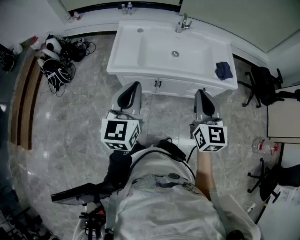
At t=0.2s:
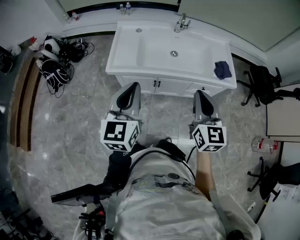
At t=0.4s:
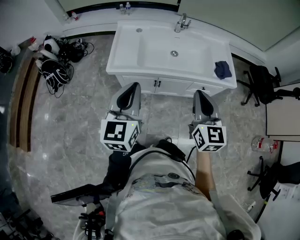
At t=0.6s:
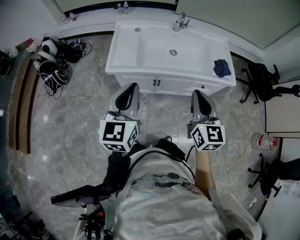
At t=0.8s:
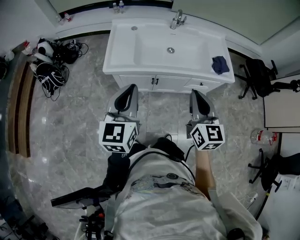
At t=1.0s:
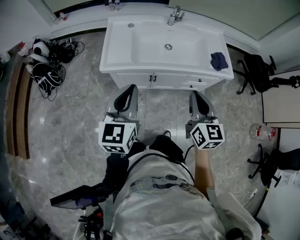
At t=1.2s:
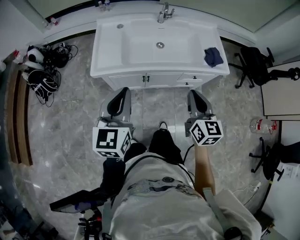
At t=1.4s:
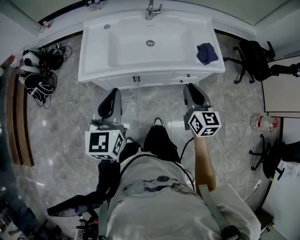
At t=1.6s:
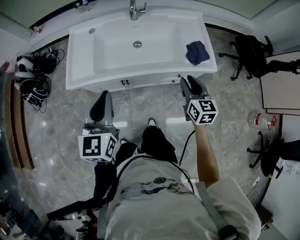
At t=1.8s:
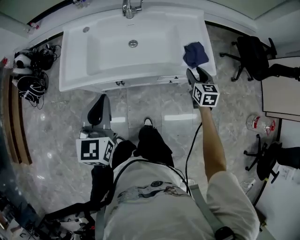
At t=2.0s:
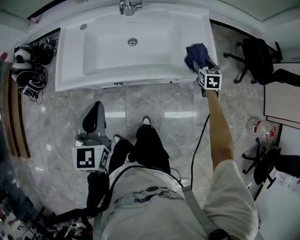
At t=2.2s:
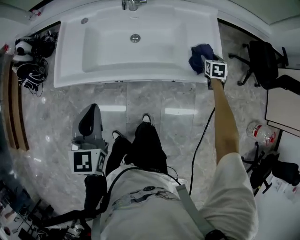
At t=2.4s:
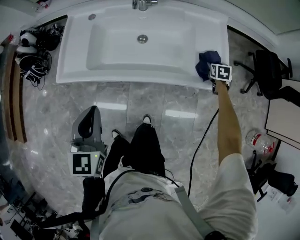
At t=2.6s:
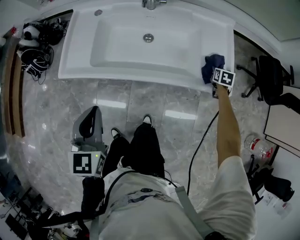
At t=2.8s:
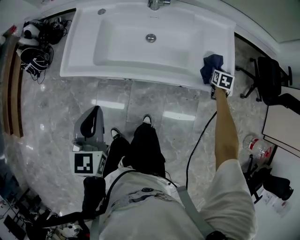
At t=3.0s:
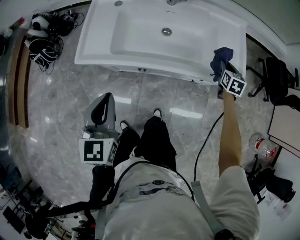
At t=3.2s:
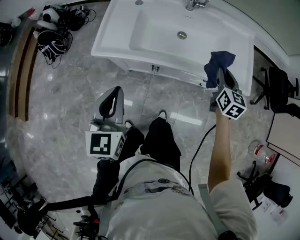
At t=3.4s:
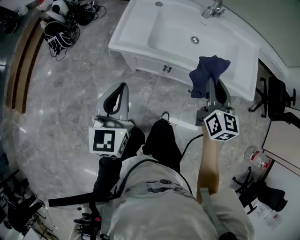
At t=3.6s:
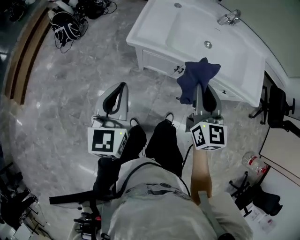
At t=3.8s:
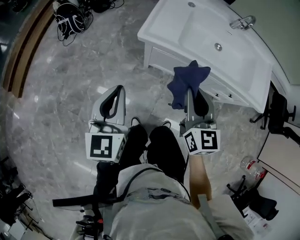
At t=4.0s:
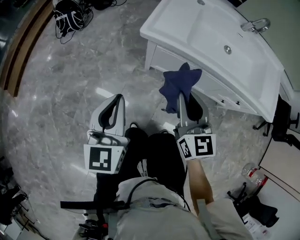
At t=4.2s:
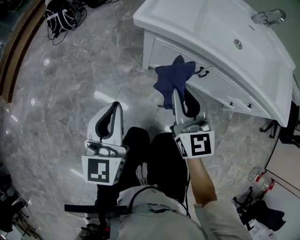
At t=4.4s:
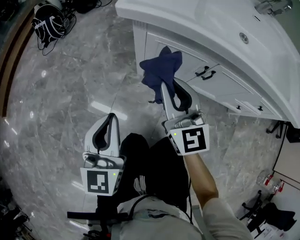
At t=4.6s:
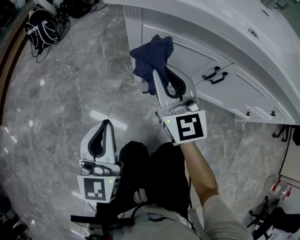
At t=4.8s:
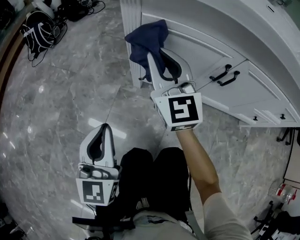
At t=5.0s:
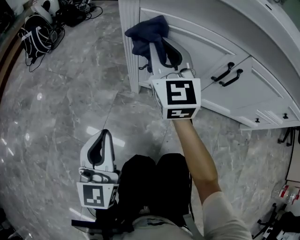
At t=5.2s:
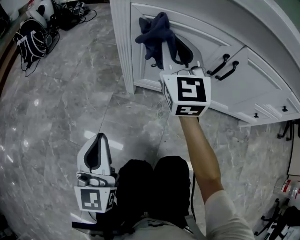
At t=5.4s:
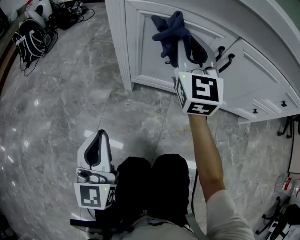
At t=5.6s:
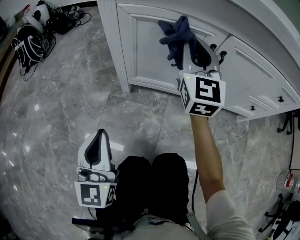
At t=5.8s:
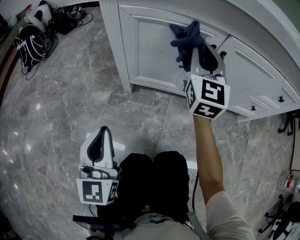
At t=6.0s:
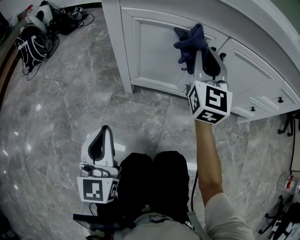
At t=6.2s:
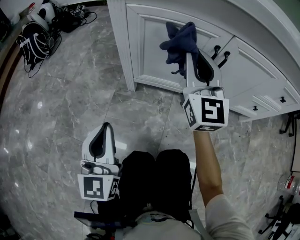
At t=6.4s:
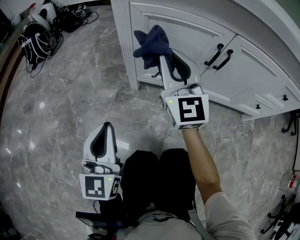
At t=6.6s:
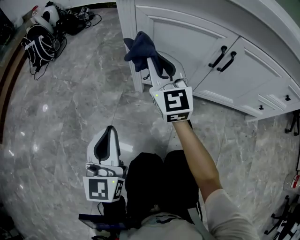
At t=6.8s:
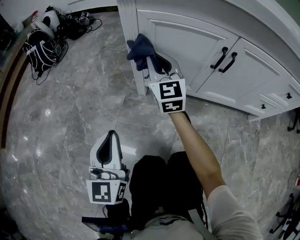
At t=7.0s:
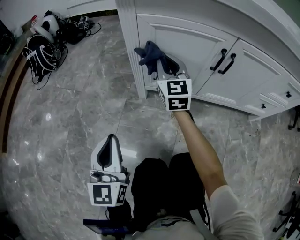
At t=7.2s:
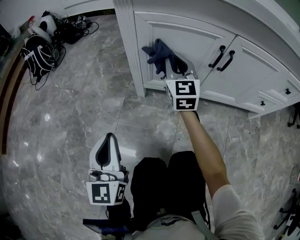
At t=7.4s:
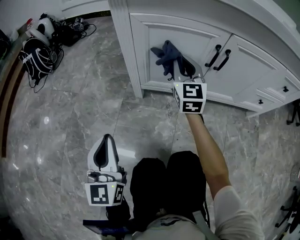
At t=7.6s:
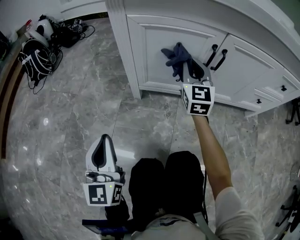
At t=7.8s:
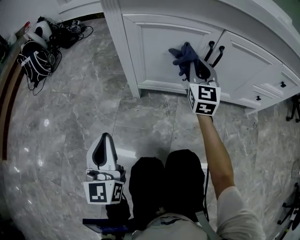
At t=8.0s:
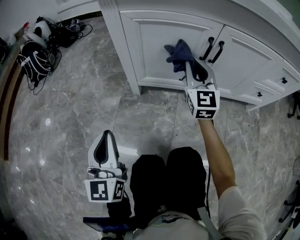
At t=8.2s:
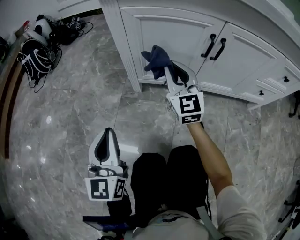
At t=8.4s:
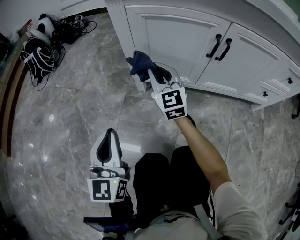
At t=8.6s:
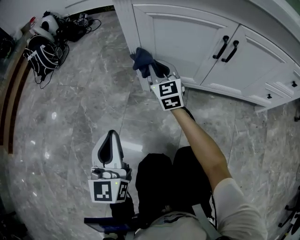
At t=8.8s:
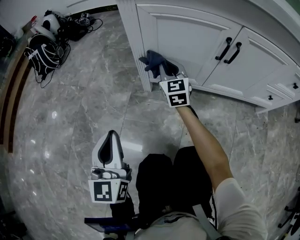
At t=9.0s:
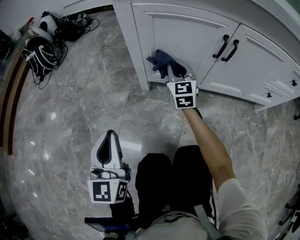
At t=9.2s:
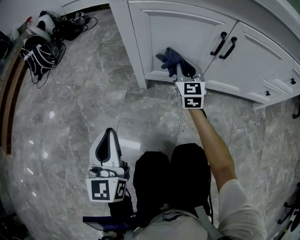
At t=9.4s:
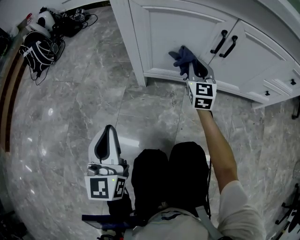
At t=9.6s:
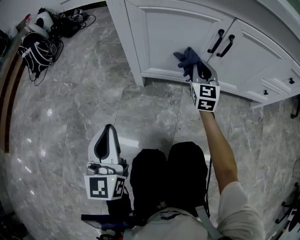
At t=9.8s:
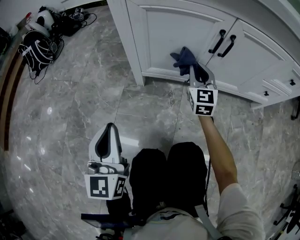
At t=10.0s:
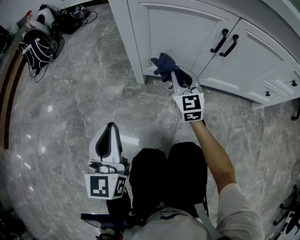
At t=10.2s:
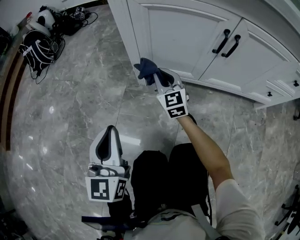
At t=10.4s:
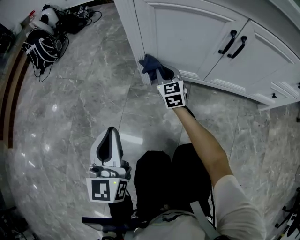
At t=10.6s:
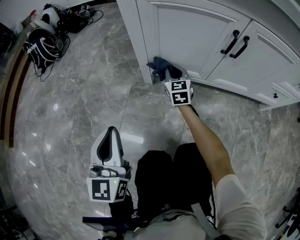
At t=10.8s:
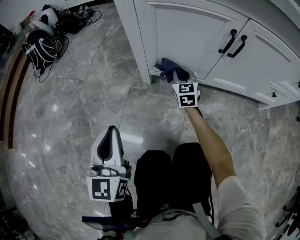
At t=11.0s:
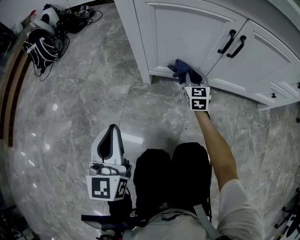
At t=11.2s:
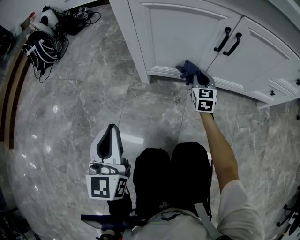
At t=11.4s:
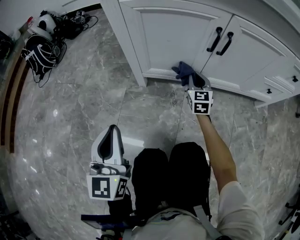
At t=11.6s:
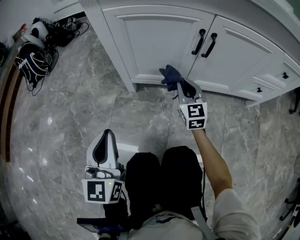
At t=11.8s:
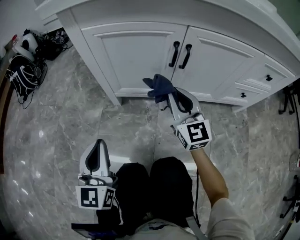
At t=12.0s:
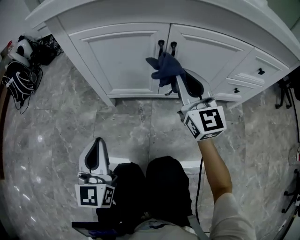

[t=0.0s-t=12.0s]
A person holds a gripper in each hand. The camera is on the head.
t=0.0s to t=1.6s: The left gripper shifts roughly 15 cm to the right, forward and downward; the right gripper moves to the right, downward and forward, approximately 30 cm, and opens up.
t=1.6s to t=3.0s: The right gripper is displaced forward, downward and to the right by some 25 cm, turns by some 20 degrees, and opens, then closes once more. The left gripper heads downward, covering approximately 5 cm.
t=3.0s to t=4.4s: The right gripper moves approximately 60 cm, and tips its fingers upward by about 40 degrees. The left gripper heads downward, covering about 30 cm.
t=4.4s to t=6.0s: The right gripper goes about 25 cm to the right, downward and forward, and swivels approximately 30 degrees. Meanwhile the left gripper goes roughly 20 cm downward.
t=6.0s to t=7.6s: The right gripper is displaced downward by roughly 10 cm, and goes to the left and returns, about 20 cm each way. The left gripper shifts about 5 cm to the left.
t=7.6s to t=9.0s: The right gripper travels downward and to the left by roughly 15 cm.
t=9.0s to t=10.4s: The right gripper travels downward by about 10 cm, and reaches approximately 15 cm to the right, then returns.
t=10.4s to t=12.0s: The right gripper travels to the right, upward and backward by about 35 cm, and rotates roughly 20 degrees, while the left gripper heads to the right, covering some 10 cm.

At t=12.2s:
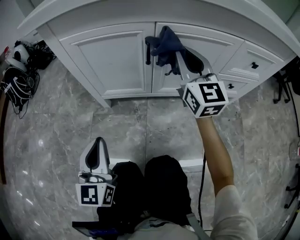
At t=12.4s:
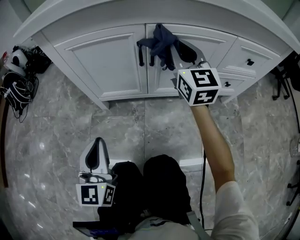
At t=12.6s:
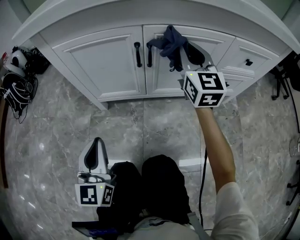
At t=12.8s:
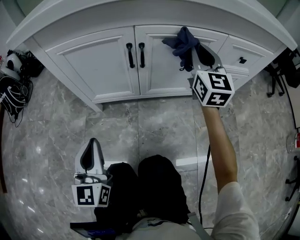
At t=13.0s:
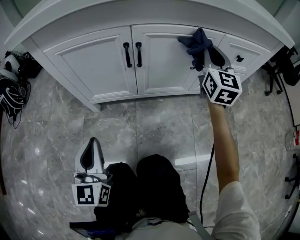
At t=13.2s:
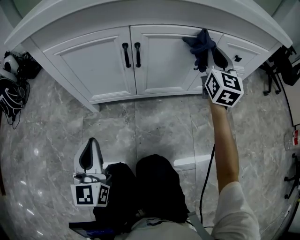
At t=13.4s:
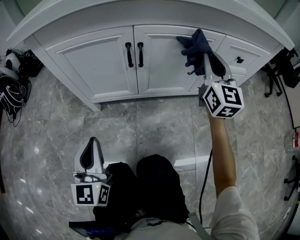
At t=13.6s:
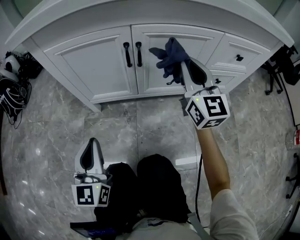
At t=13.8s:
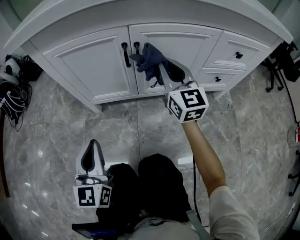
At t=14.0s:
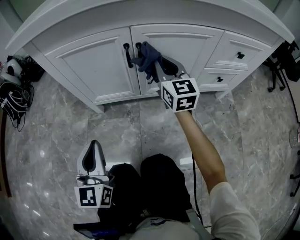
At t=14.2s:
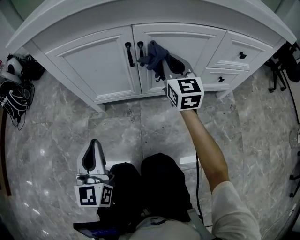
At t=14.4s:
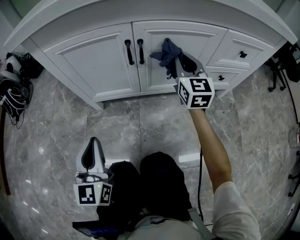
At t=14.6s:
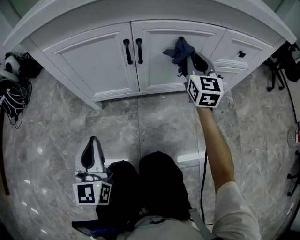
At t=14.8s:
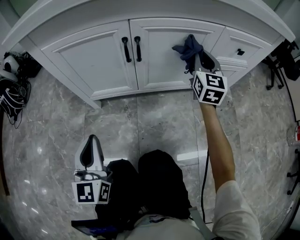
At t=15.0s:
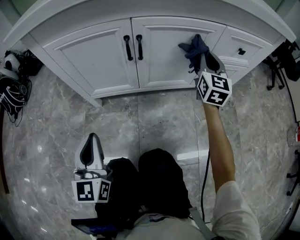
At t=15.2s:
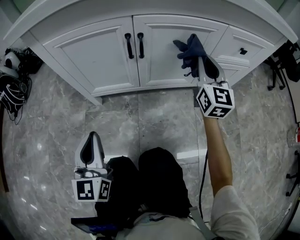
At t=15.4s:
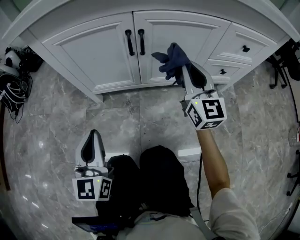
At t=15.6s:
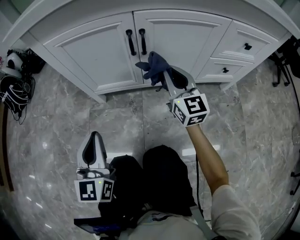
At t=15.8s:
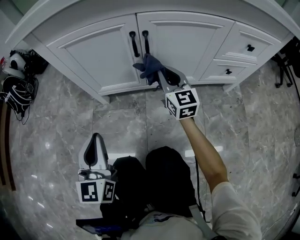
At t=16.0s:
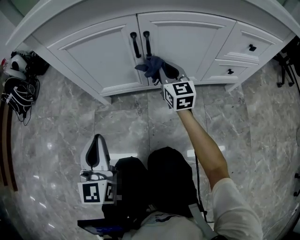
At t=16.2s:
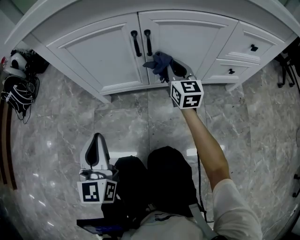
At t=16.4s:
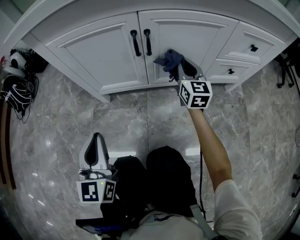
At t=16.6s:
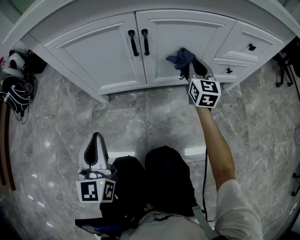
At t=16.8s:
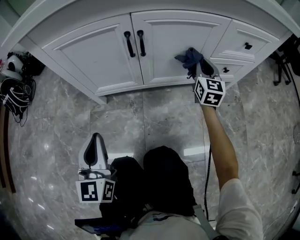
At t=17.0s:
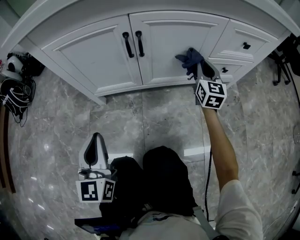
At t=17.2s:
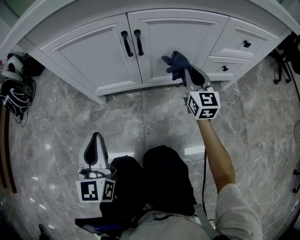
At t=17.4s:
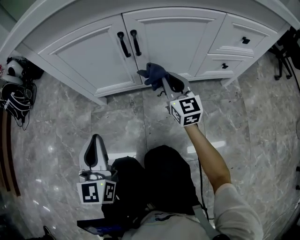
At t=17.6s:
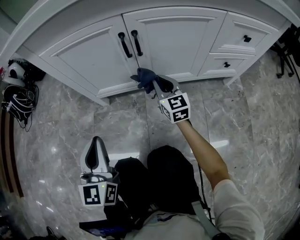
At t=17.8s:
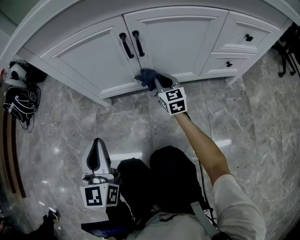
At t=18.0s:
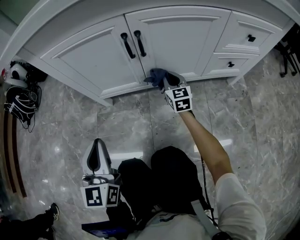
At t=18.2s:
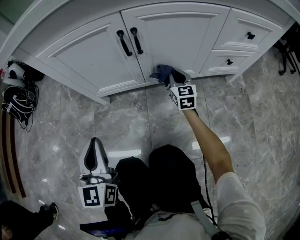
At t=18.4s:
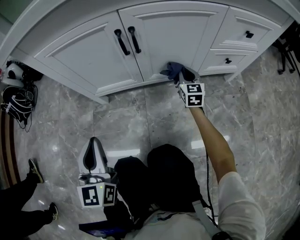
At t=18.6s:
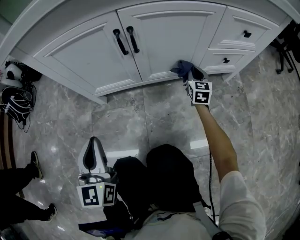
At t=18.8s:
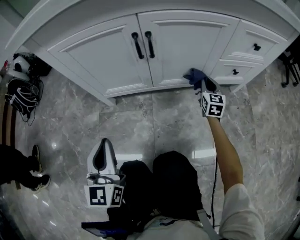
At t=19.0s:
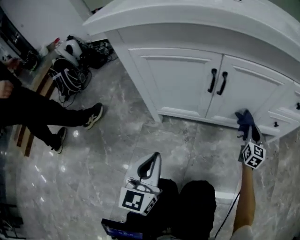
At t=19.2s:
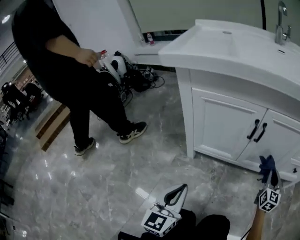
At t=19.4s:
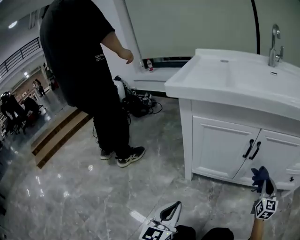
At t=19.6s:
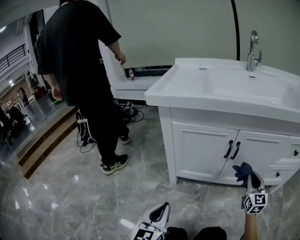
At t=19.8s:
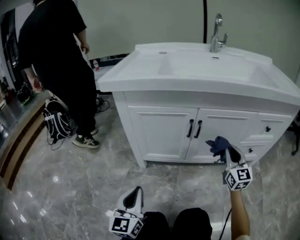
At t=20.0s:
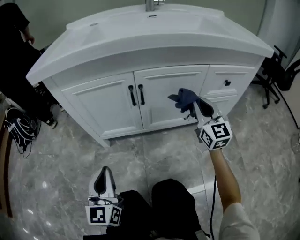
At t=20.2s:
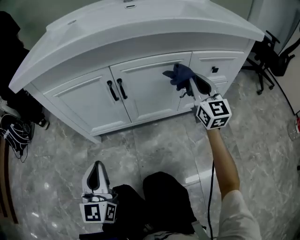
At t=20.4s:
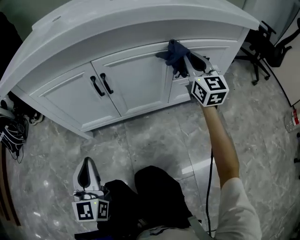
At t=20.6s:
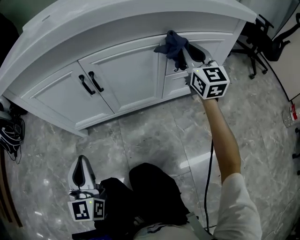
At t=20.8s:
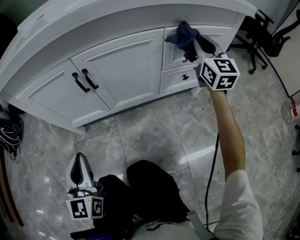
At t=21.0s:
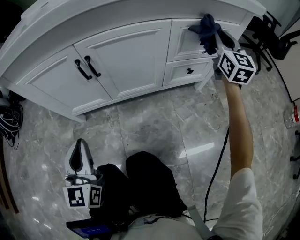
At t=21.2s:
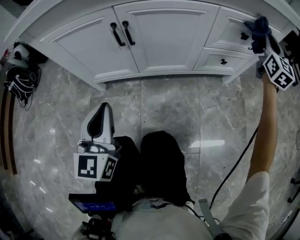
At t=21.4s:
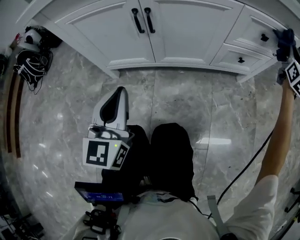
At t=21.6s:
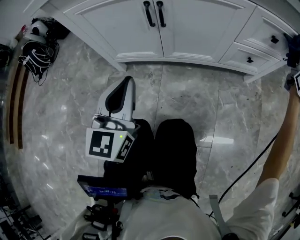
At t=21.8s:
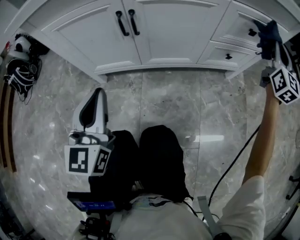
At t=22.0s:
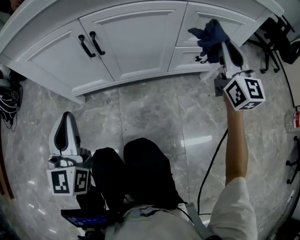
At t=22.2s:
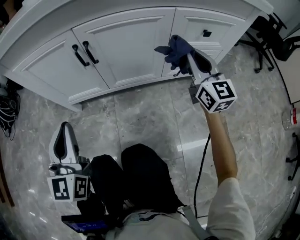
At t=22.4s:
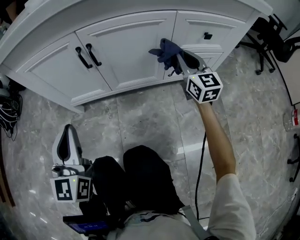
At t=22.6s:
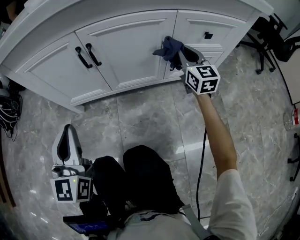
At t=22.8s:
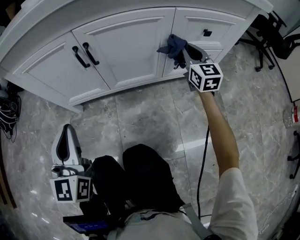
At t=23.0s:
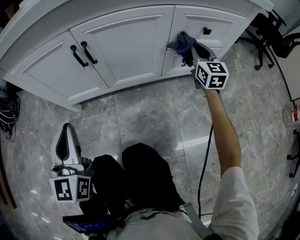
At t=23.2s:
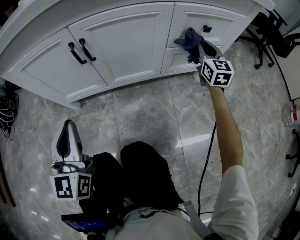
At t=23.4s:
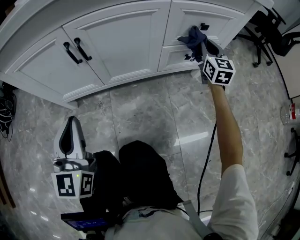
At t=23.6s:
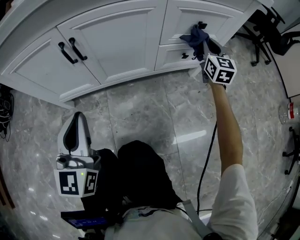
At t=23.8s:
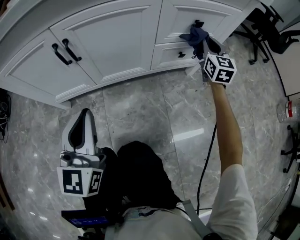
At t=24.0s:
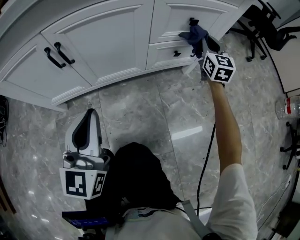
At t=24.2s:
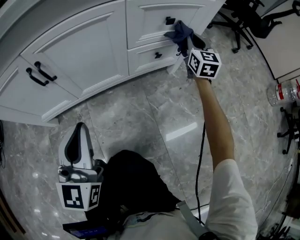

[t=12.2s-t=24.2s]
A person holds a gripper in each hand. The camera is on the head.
t=12.2s to t=13.8s: The right gripper moves approximately 20 cm to the right and comes back.
t=13.8s to t=15.2s: The right gripper heads to the right, covering about 10 cm.
t=15.2s to t=16.6s: The right gripper goes roughly 10 cm downward, and moves approximately 15 cm to the left and comes back.
t=16.6s to t=18.2s: The right gripper swings left and right, about 20 cm each way, with 2 reversals.
t=18.2s to t=19.8s: The right gripper is displaced upward and backward by about 25 cm.
t=19.8s to t=21.2s: The right gripper moves to the right, roughly 30 cm, while the left gripper heads to the right and forward, covering about 15 cm.
t=21.2s to t=22.6s: The right gripper is displaced to the left and downward by about 25 cm, and swivels some 20 degrees.
t=22.6s to t=24.2s: Both grippers travel together to the right, approximately 20 cm. The right gripper swivels about 20 degrees.
